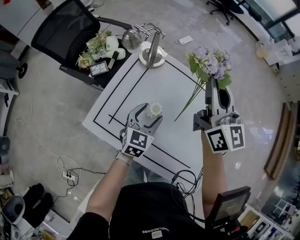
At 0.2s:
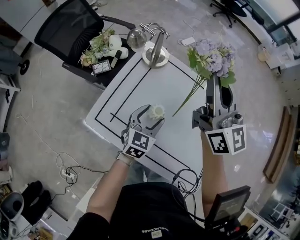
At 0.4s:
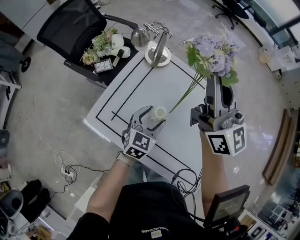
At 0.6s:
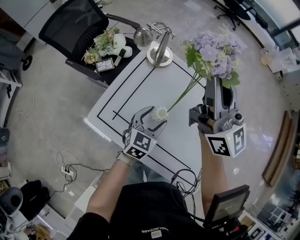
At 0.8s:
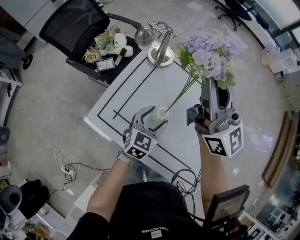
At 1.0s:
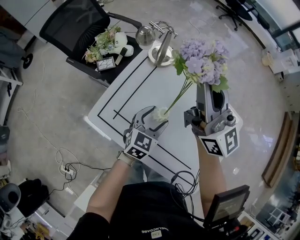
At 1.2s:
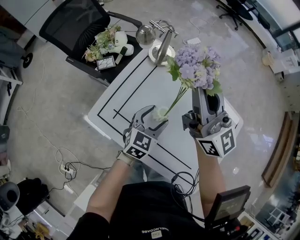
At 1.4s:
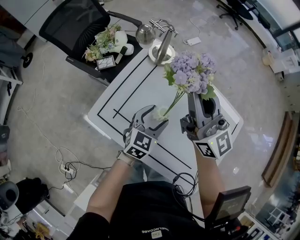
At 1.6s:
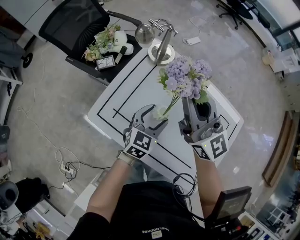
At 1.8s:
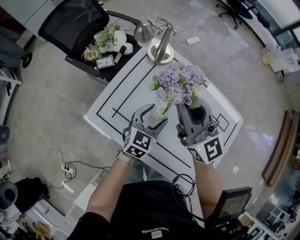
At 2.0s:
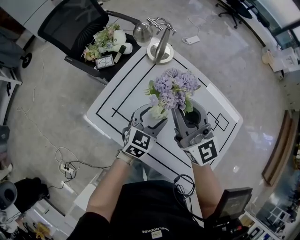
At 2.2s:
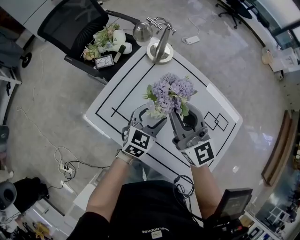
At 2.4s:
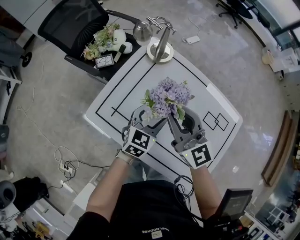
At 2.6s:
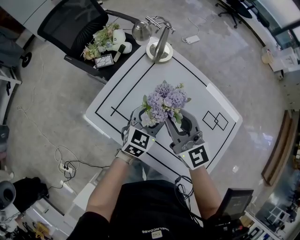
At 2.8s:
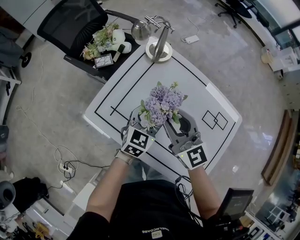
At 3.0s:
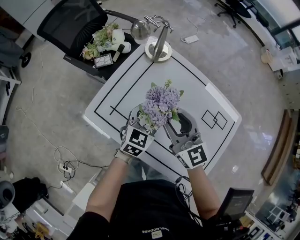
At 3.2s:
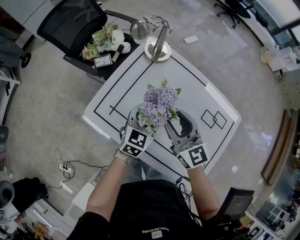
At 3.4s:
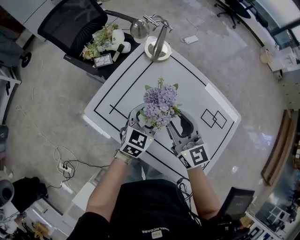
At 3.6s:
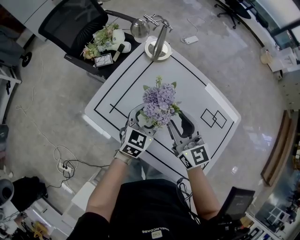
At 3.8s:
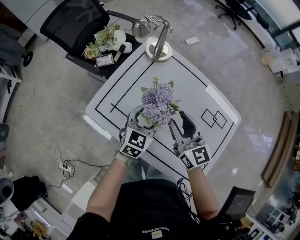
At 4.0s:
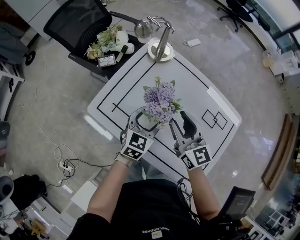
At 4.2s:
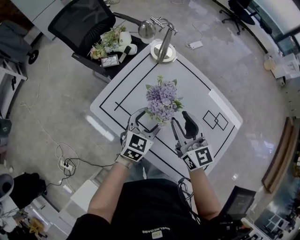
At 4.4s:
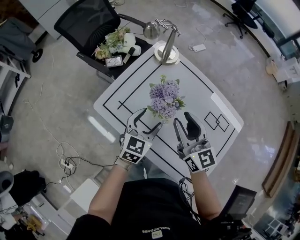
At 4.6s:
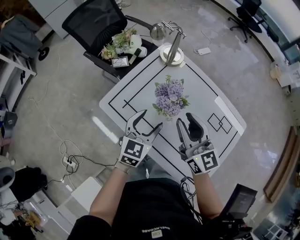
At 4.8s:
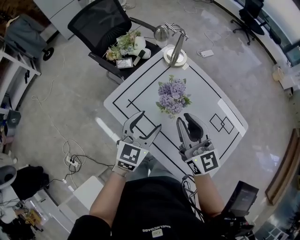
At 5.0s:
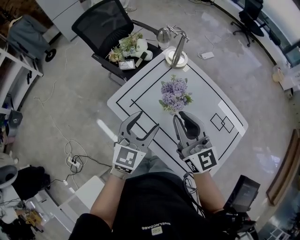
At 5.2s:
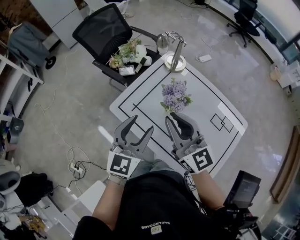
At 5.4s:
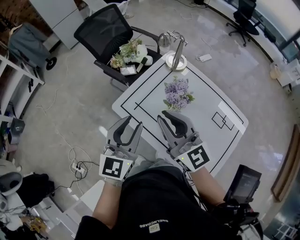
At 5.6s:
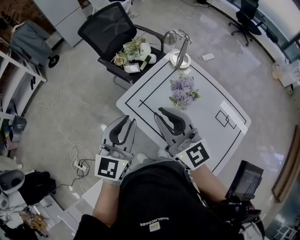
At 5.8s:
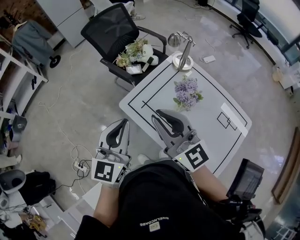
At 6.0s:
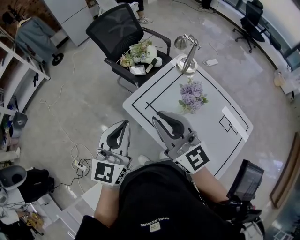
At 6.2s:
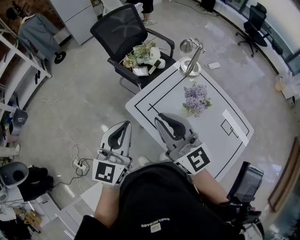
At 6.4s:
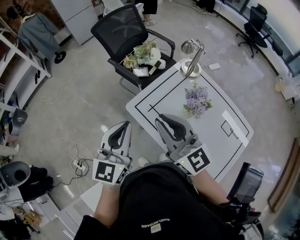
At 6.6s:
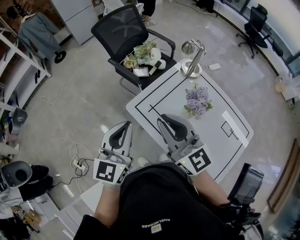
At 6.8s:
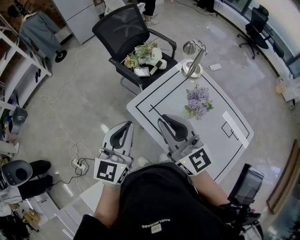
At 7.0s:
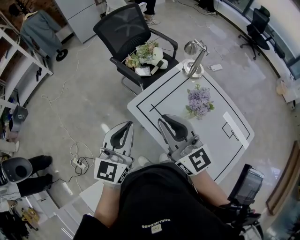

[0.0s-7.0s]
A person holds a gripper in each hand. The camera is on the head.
0.0s to 1.4s: The right gripper goes roughly 10 cm to the left, and rotates some 20 degrees.
1.4s to 2.8s: The right gripper goes approximately 15 cm downward and backward, and rotates roughly 20 degrees.
2.8s to 4.2s: The right gripper moves approximately 5 cm.
4.2s to 5.6s: The left gripper heads upward and to the left, covering some 30 cm, changes its angle by roughly 30 degrees, and closes up. Meanwhile the right gripper shifts roughly 25 cm to the left and upward, changes its angle by some 20 degrees, and closes its fingers.
5.6s to 7.0s: The grippers both shift to the left by about 5 cm.

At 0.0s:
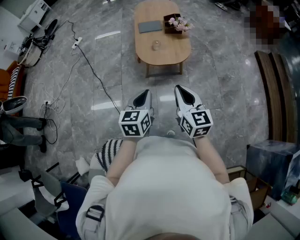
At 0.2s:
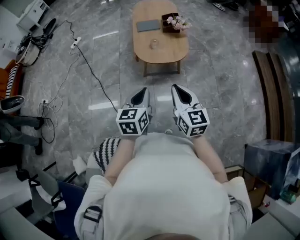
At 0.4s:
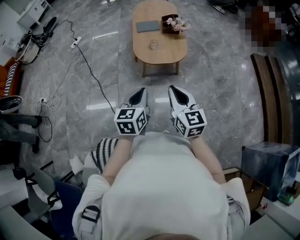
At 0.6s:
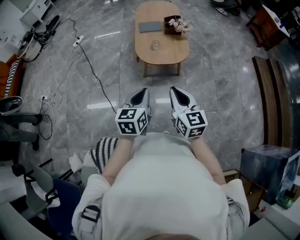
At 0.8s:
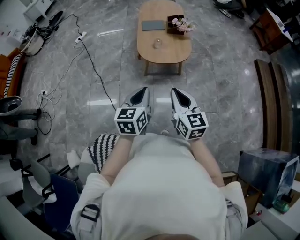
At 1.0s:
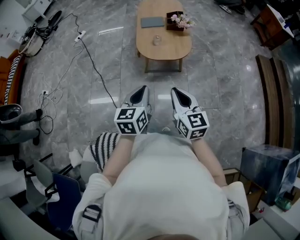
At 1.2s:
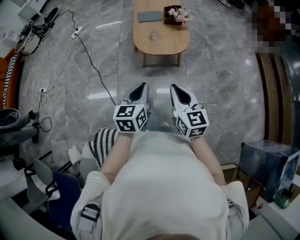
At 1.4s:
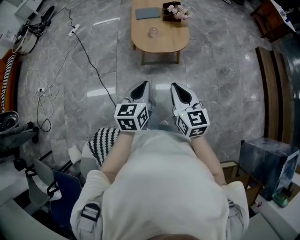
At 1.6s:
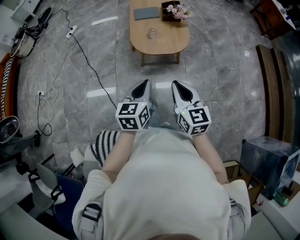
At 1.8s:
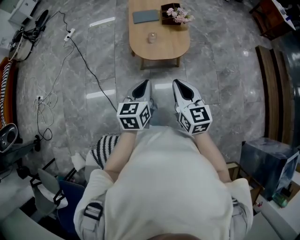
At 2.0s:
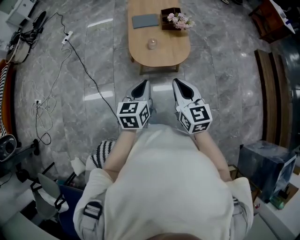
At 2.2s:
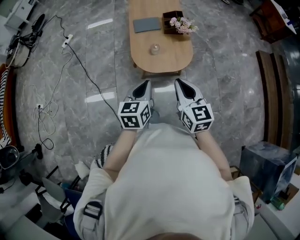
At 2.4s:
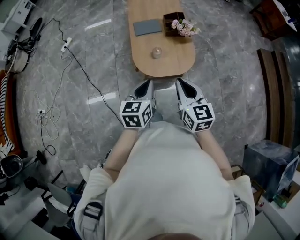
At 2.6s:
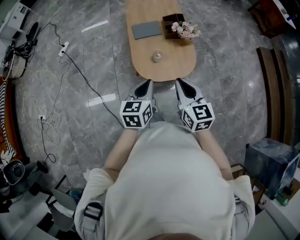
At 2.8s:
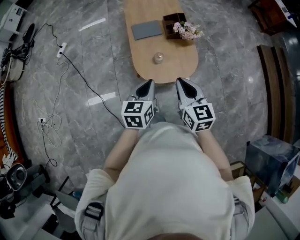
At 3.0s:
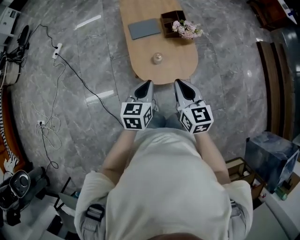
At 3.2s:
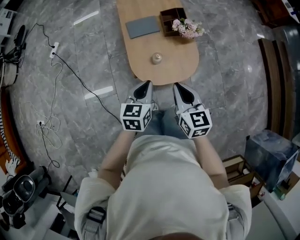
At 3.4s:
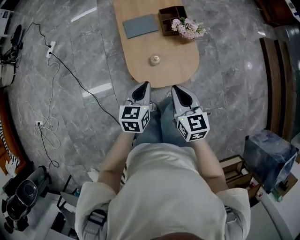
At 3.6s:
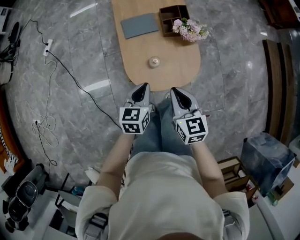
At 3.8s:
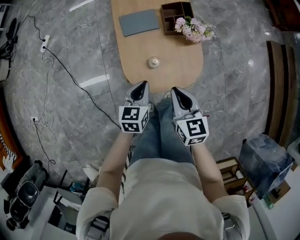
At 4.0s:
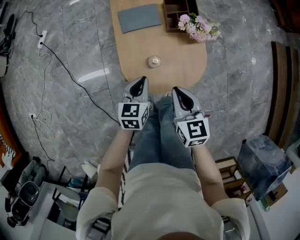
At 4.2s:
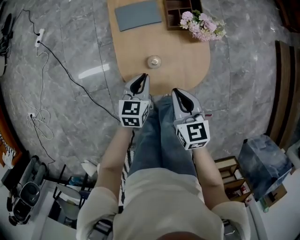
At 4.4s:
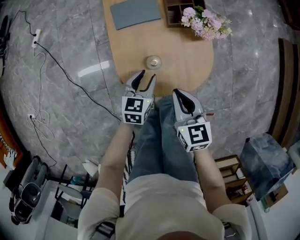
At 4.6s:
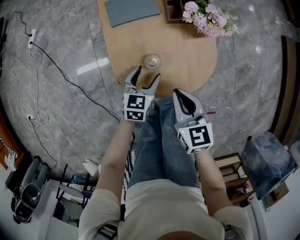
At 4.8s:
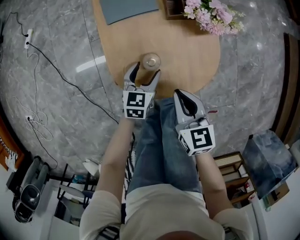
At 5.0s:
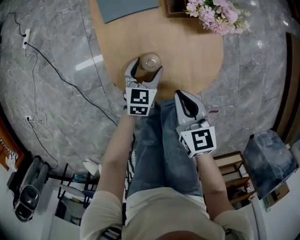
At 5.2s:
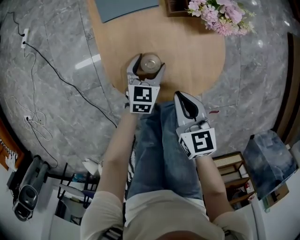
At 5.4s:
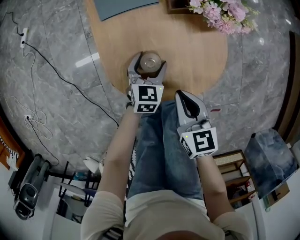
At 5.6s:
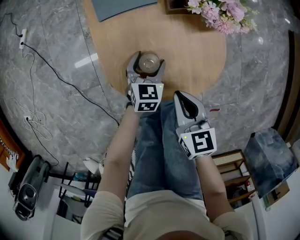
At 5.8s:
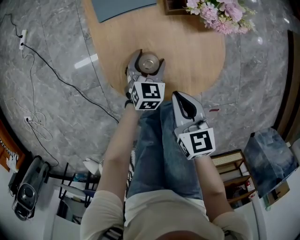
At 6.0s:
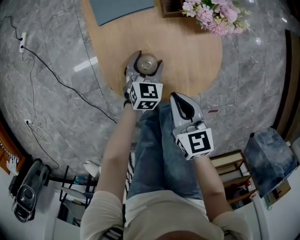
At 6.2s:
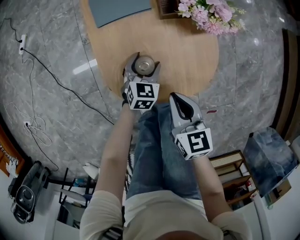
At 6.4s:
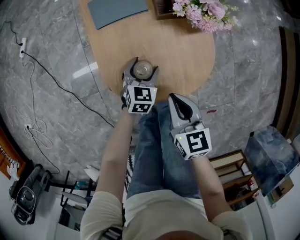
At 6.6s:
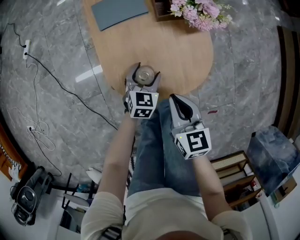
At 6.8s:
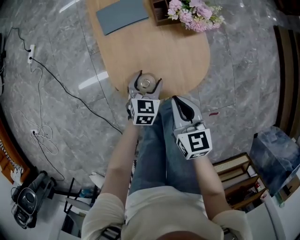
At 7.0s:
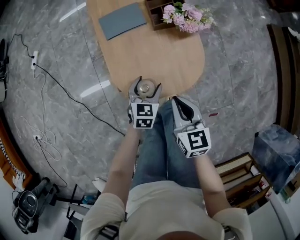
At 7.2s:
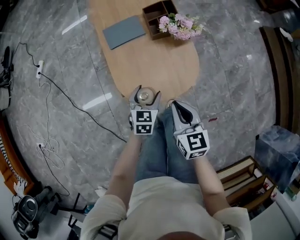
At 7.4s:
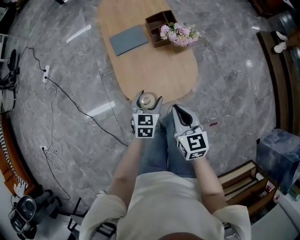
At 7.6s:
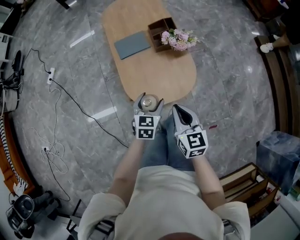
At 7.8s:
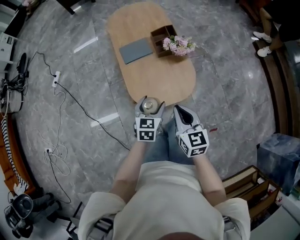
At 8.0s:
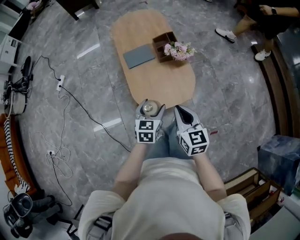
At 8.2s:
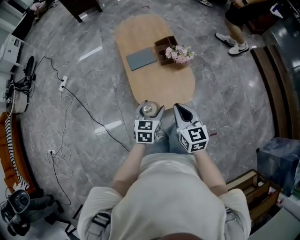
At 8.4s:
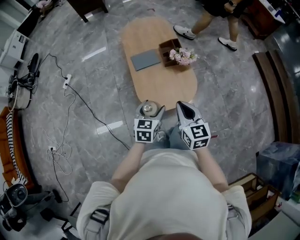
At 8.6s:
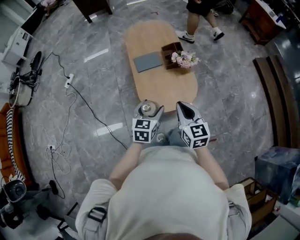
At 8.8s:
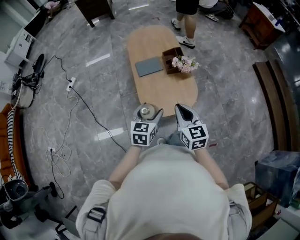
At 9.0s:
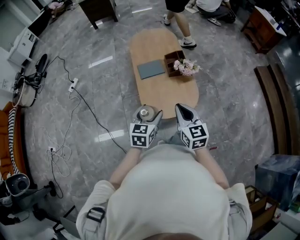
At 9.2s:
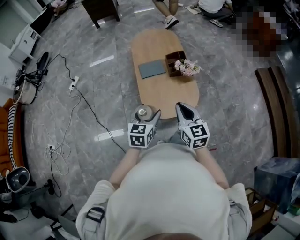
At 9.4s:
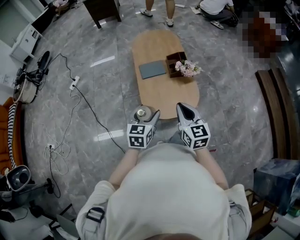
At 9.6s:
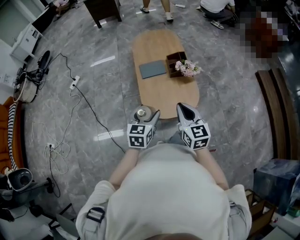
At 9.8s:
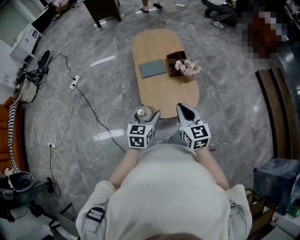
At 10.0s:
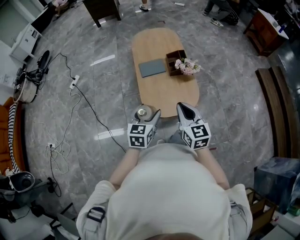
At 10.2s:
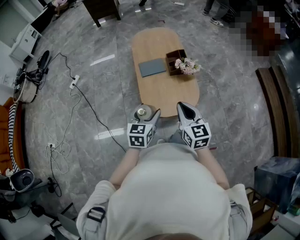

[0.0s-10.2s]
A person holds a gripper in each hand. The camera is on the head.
0.0s to 1.4s: There are only small adjustments of the grippers.
1.4s to 3.0s: The grippers both shift forward by about 35 cm.
3.0s to 4.4s: Both grippers travel together downward and forward, approximately 25 cm. The left gripper opens up.
4.4s to 5.8s: The right gripper shifts approximately 10 cm downward. Meanwhile the left gripper moves downward and forward, about 15 cm, and opens up.
5.8s to 7.2s: Both grippers travel together upward and backward, about 15 cm.
7.2s to 8.8s: Both grippers move upward, some 20 cm.
8.8s to 10.2s: The grippers move only a little.

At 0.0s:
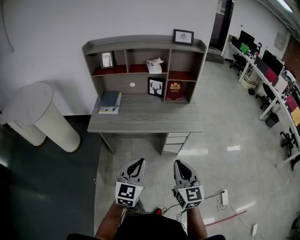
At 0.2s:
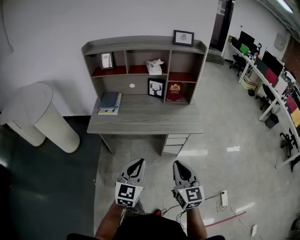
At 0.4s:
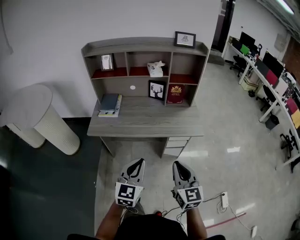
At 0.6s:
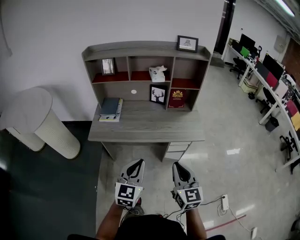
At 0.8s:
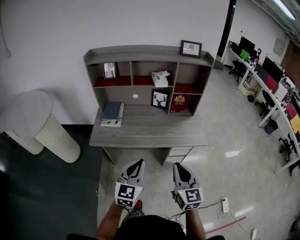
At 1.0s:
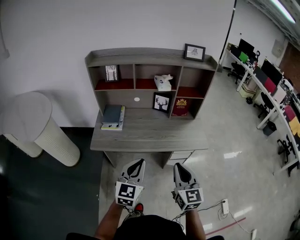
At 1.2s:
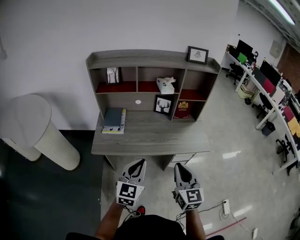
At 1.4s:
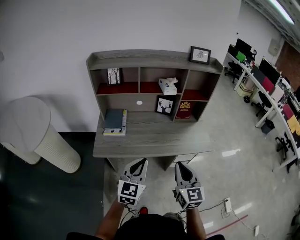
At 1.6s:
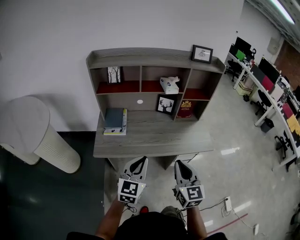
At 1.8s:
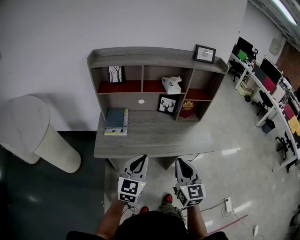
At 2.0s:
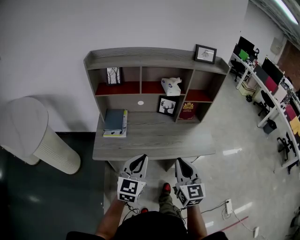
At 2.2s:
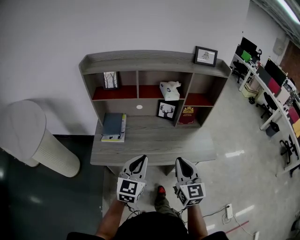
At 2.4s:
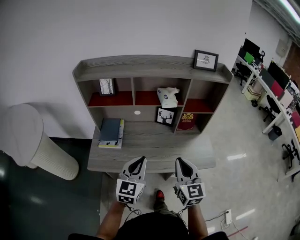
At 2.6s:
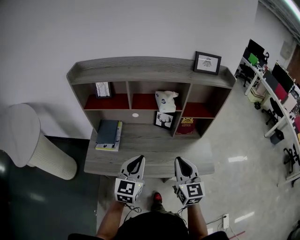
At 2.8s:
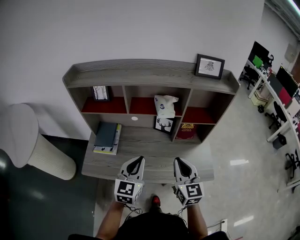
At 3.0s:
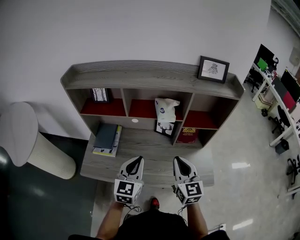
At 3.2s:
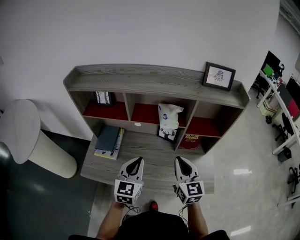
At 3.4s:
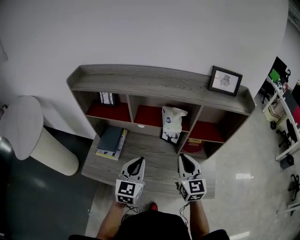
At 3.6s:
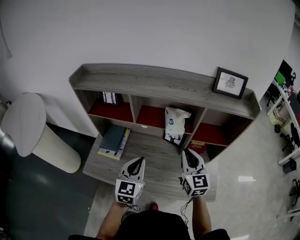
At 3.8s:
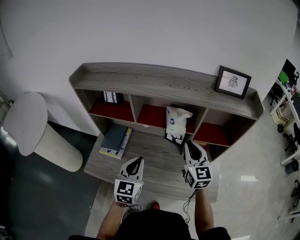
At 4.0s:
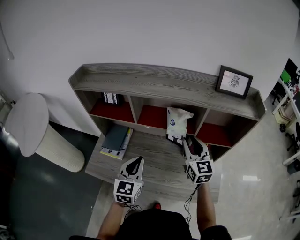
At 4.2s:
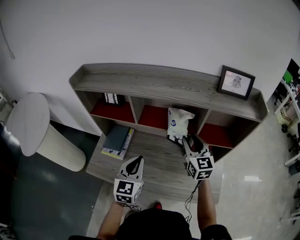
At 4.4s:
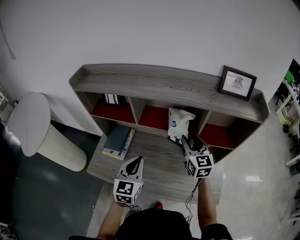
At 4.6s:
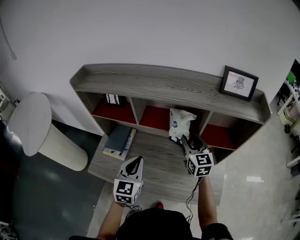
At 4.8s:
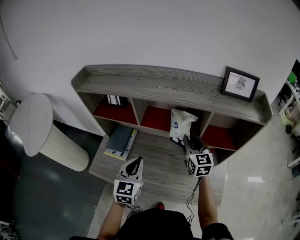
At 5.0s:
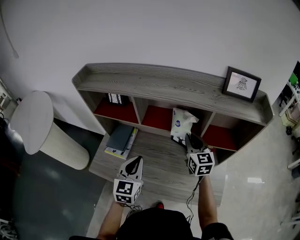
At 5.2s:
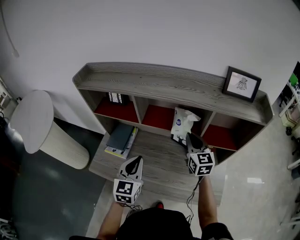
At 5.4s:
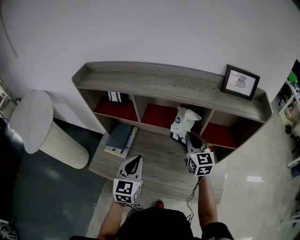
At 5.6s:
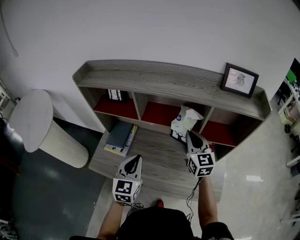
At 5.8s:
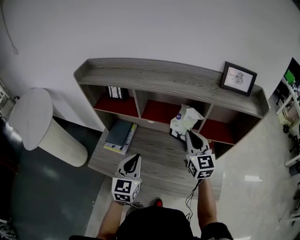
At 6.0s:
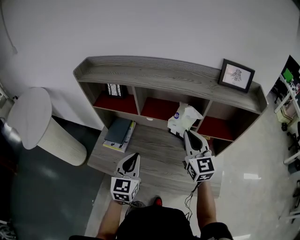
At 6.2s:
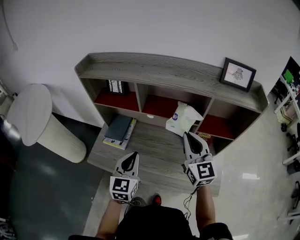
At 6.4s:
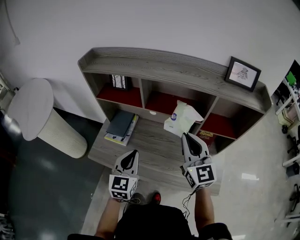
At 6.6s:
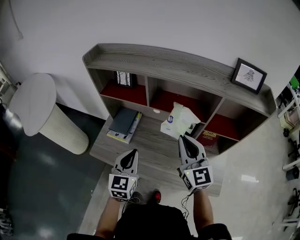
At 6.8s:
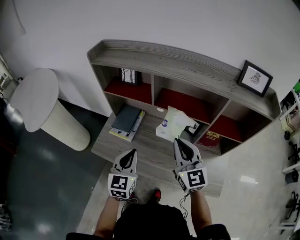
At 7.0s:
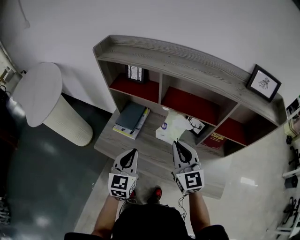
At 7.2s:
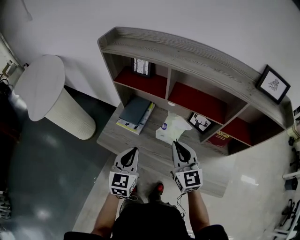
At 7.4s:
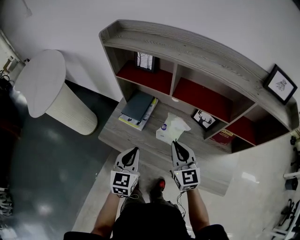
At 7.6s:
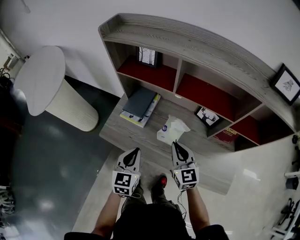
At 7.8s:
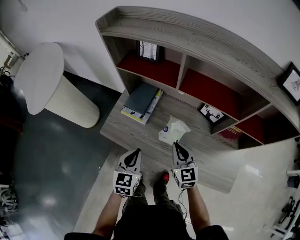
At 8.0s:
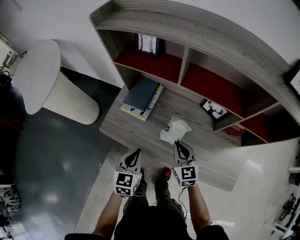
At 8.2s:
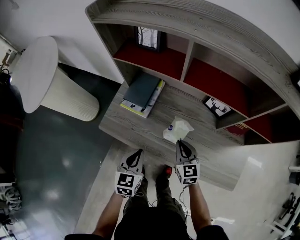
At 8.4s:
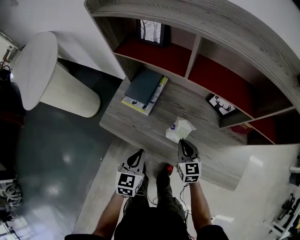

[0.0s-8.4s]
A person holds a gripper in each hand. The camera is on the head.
0.0s to 1.4s: The two grippers go approximately 20 cm forward and to the left.
1.4s to 2.8s: Both grippers move forward, roughly 25 cm.
2.8s to 4.2s: The right gripper shifts about 25 cm forward, and opens its fingers; the left gripper shifts approximately 10 cm forward.
4.2s to 5.6s: The right gripper closes up.
5.6s to 7.0s: The left gripper heads to the left, covering some 10 cm, while the right gripper moves to the left and backward, some 15 cm.
7.0s to 8.4s: The left gripper is displaced downward by about 15 cm, and swivels roughly 20 degrees, while the right gripper goes about 25 cm downward, and changes its angle by some 30 degrees.
